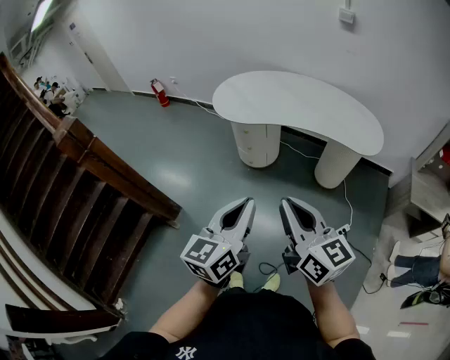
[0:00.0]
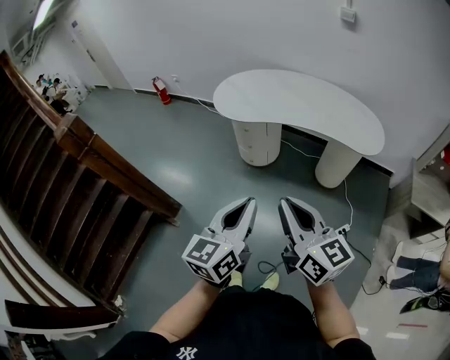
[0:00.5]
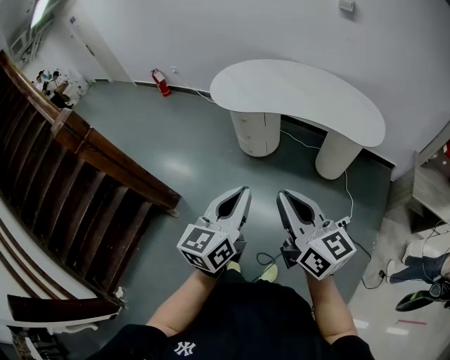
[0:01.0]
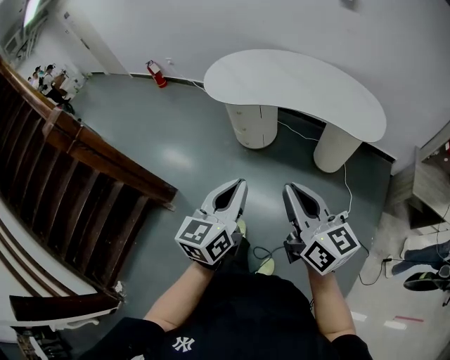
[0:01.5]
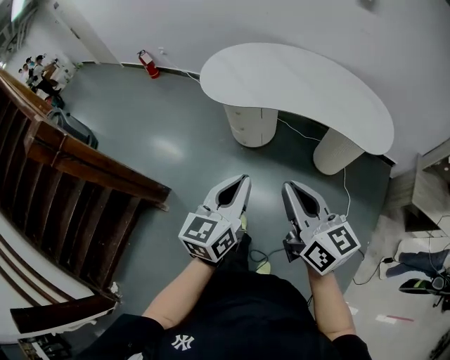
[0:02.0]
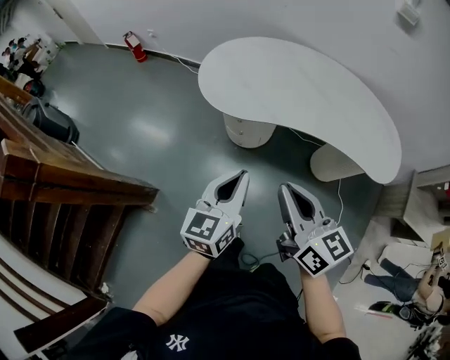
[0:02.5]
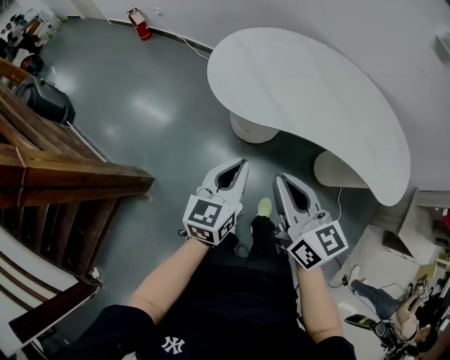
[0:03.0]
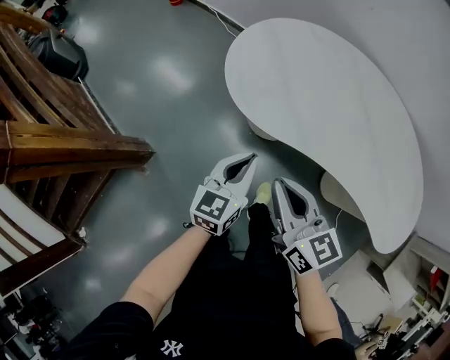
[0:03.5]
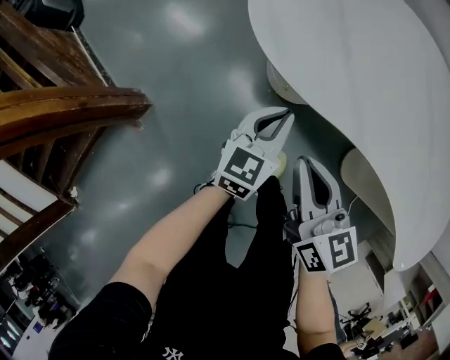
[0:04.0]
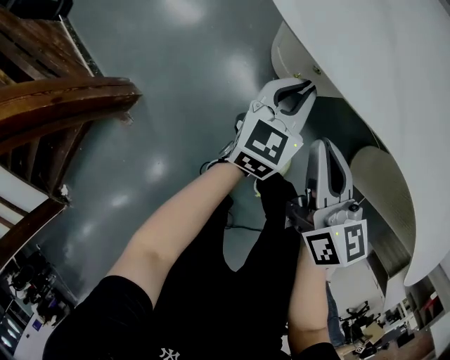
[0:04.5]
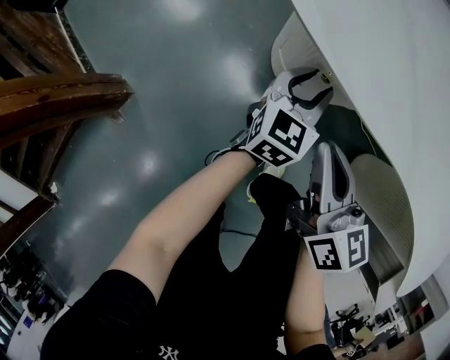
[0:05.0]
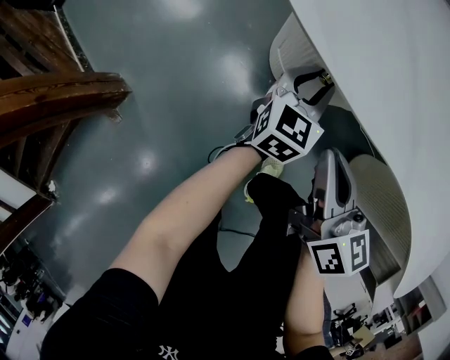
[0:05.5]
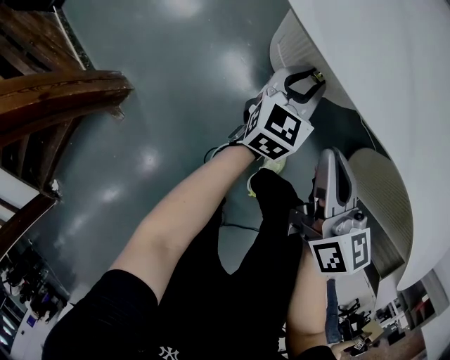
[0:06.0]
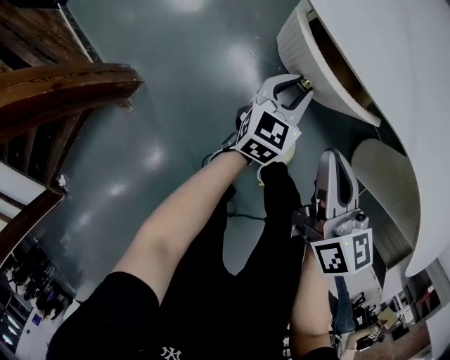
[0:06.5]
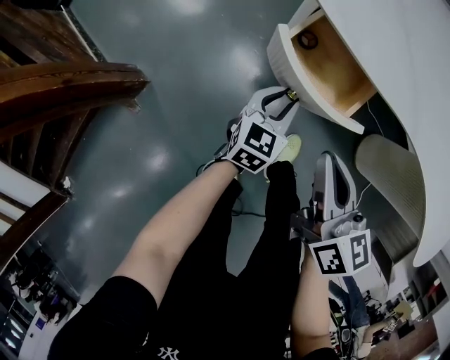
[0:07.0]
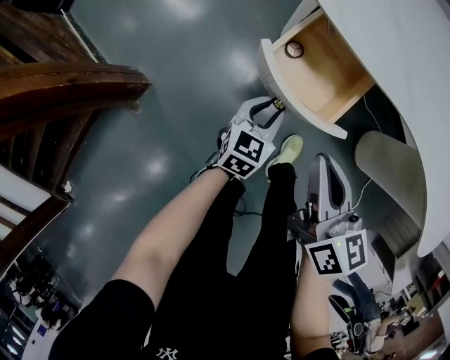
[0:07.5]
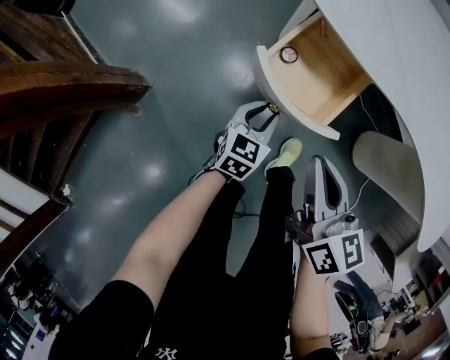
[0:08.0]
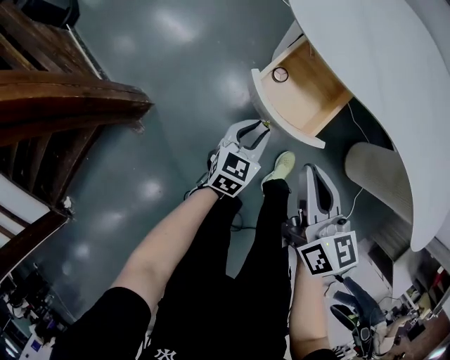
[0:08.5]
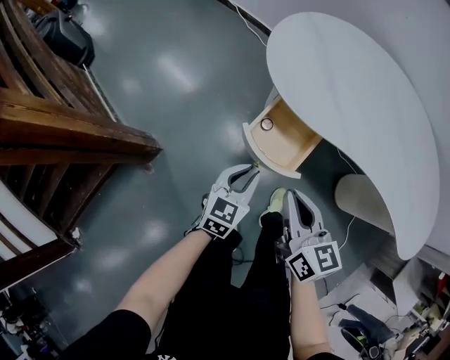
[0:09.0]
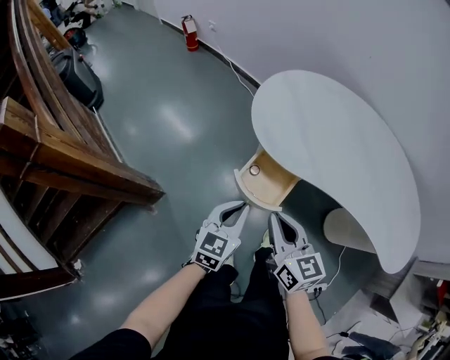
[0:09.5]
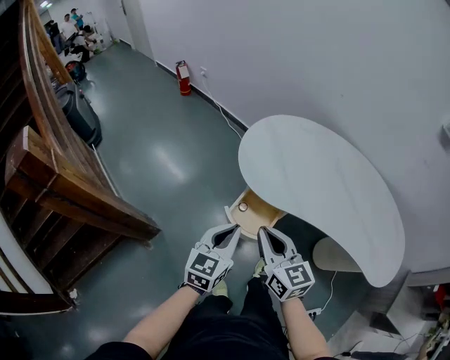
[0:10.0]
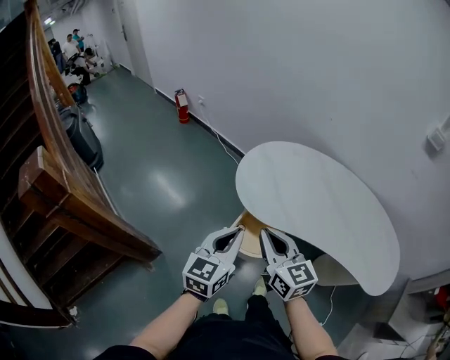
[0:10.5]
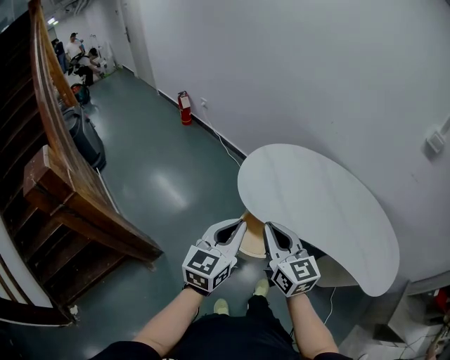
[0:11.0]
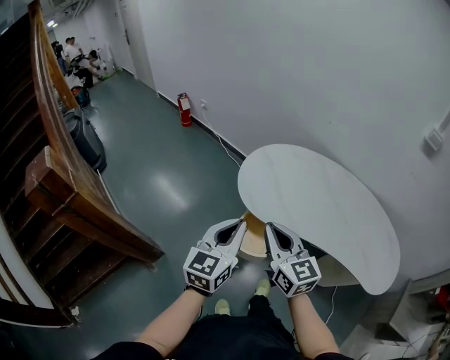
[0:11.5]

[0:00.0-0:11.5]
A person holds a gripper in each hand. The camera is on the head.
0:00.0 to 0:02.0: Both grippers move forward, approximately 15 cm.
0:02.0 to 0:04.0: The two grippers travel together, forward, about 50 cm. Both grippers travel together downward, roughly 35 cm. The right gripper swivels about 20 degrees.
0:04.0 to 0:06.0: The left gripper heads downward and forward, covering about 20 cm, and opens. The right gripper moves downward, approximately 15 cm.
0:06.0 to 0:07.5: The left gripper is displaced backward and to the left by roughly 20 cm. The right gripper travels backward, upward and to the left by about 15 cm.
0:07.5 to 0:09.5: The left gripper goes about 35 cm upward, and closes its fingers, while the right gripper shifts approximately 20 cm upward.
0:09.5 to 0:11.5: Both grippers move upward, some 20 cm.

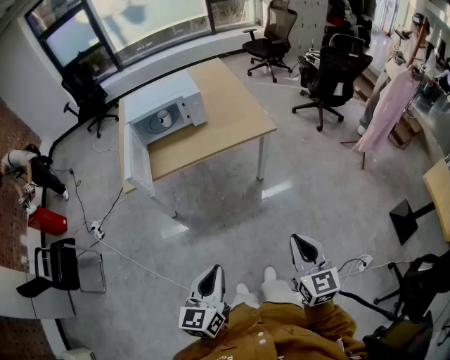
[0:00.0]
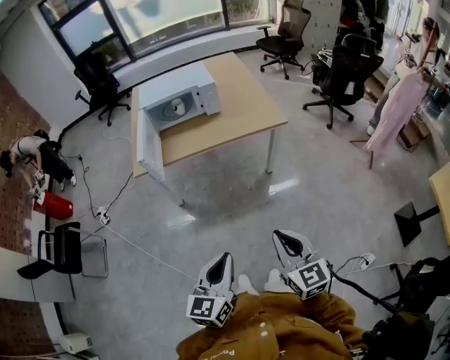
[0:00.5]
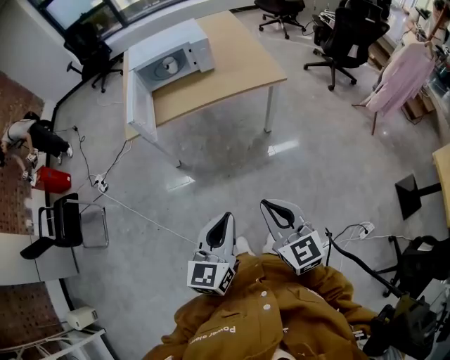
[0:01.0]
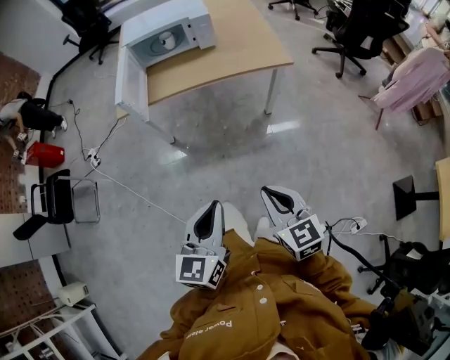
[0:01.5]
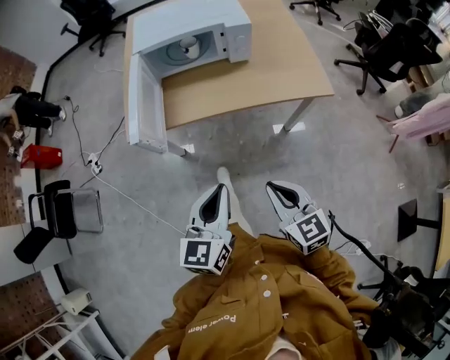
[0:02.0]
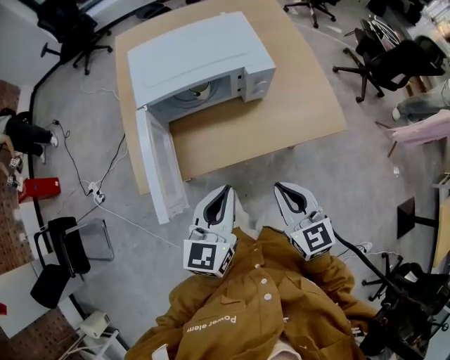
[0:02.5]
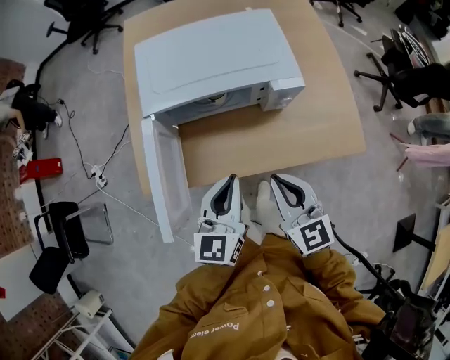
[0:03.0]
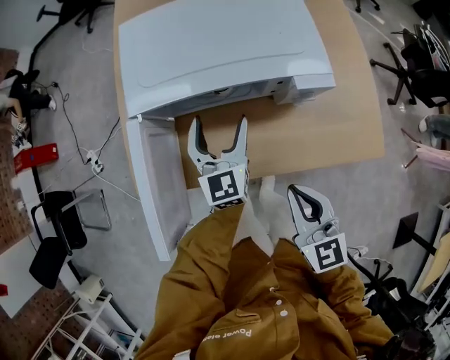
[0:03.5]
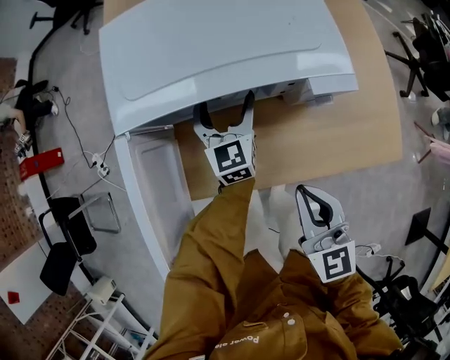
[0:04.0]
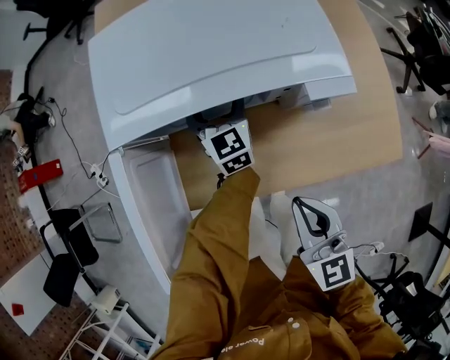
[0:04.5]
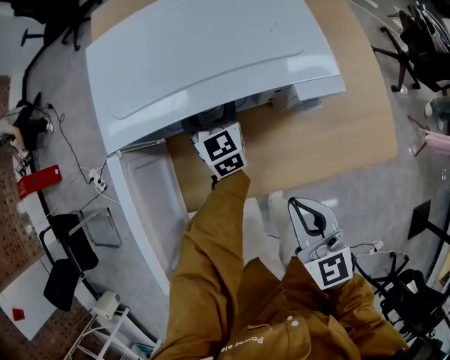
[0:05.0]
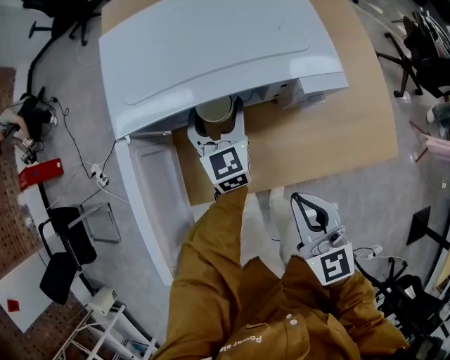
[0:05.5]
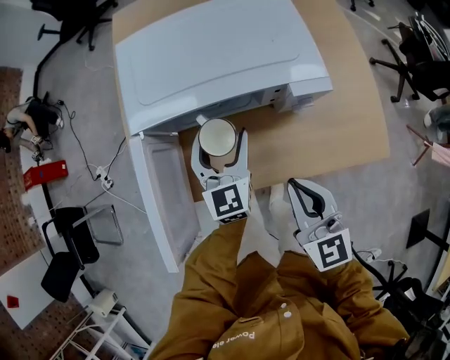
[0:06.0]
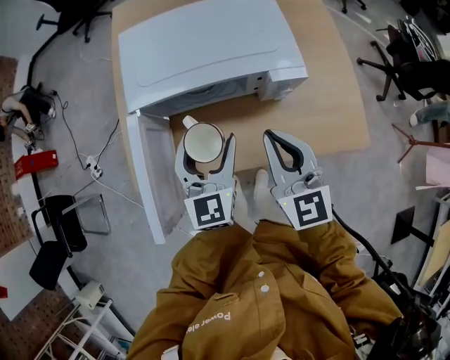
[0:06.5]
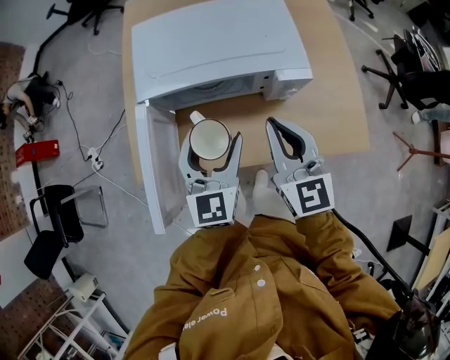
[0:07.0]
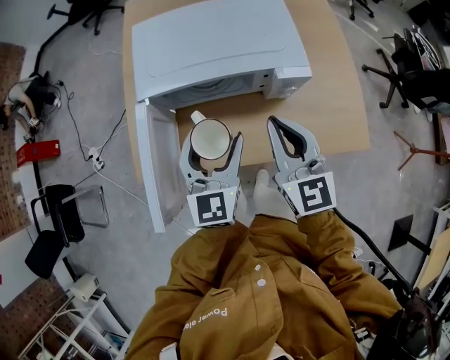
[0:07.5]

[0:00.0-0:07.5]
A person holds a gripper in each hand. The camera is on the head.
0:00.0 to 0:02.0: The right gripper travels forward and to the left by about 30 cm, and rotates approximately 30 degrees. Meanwhile the left gripper travels forward by roughly 30 cm.
0:02.0 to 0:04.0: The left gripper shifts some 60 cm forward, and opens, while the right gripper goes approximately 40 cm forward.
0:04.0 to 0:05.5: The grippers make only small movements.
0:05.5 to 0:07.5: The right gripper is displaced upward and forward by approximately 15 cm. Meanwhile the left gripper is displaced backward and upward by about 20 cm.

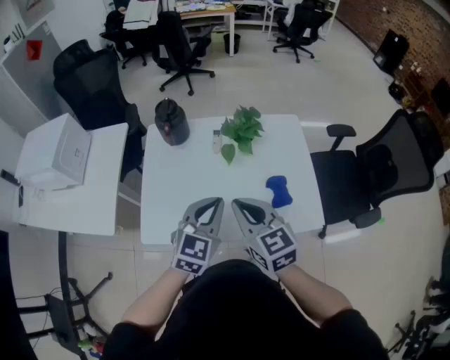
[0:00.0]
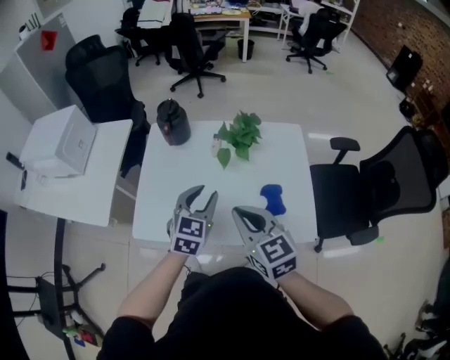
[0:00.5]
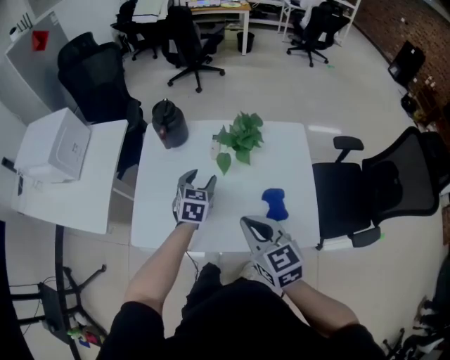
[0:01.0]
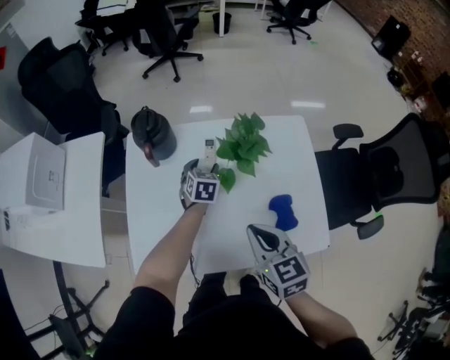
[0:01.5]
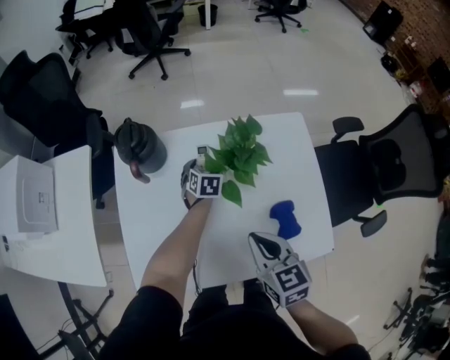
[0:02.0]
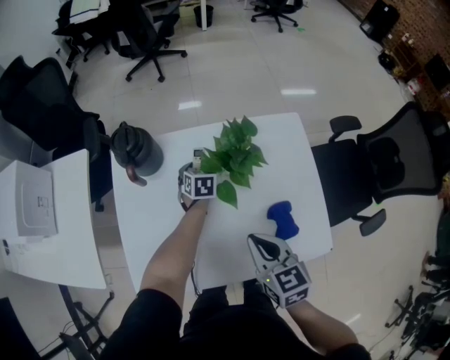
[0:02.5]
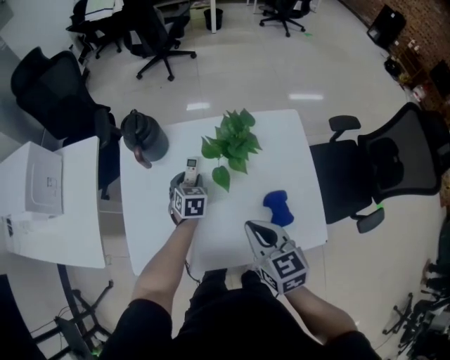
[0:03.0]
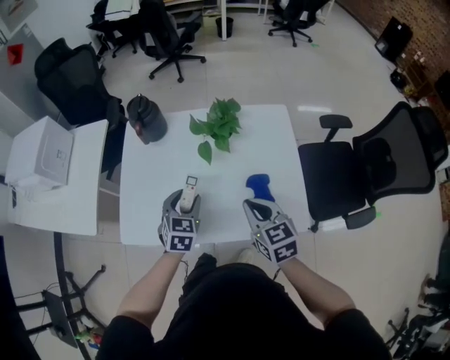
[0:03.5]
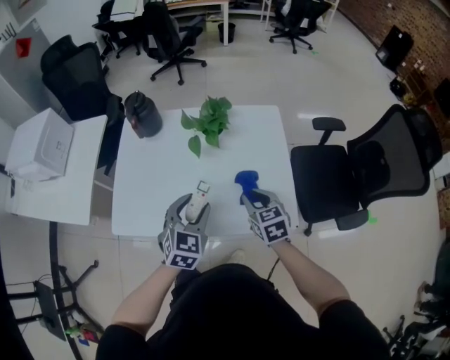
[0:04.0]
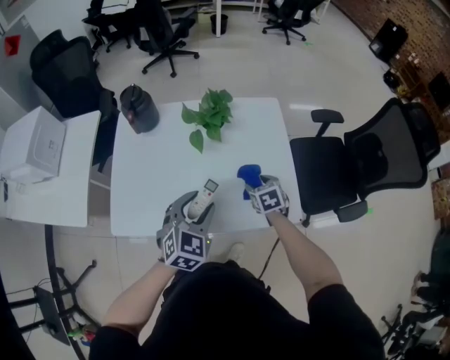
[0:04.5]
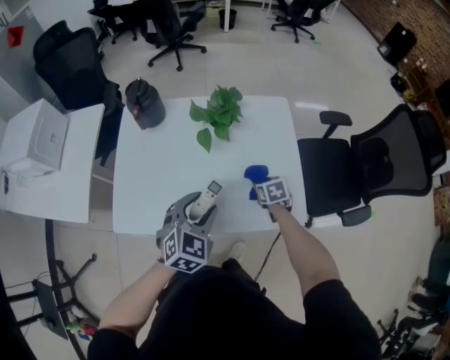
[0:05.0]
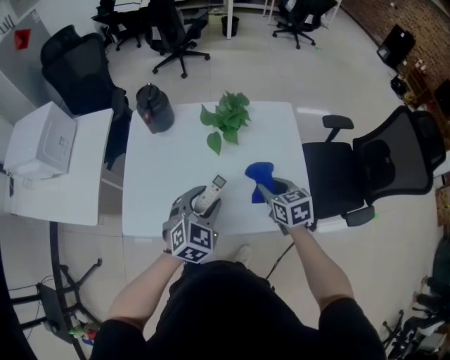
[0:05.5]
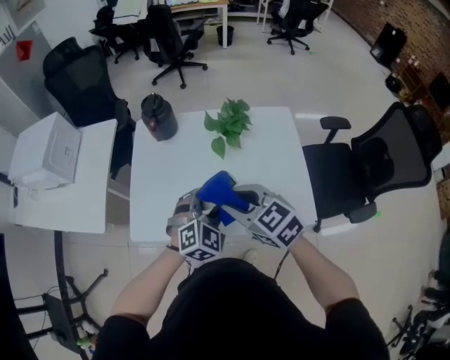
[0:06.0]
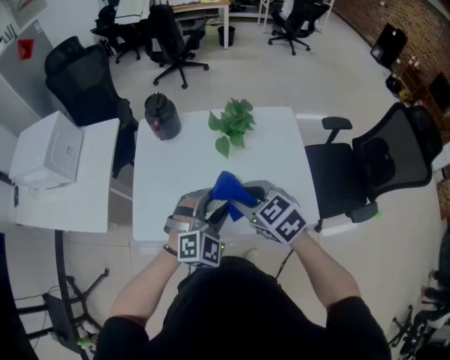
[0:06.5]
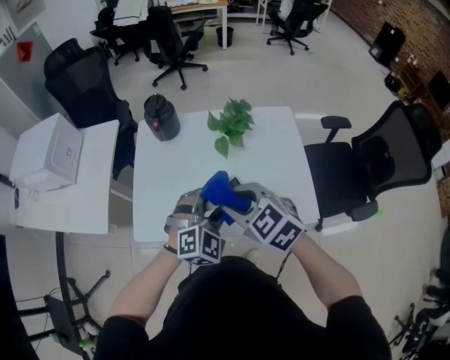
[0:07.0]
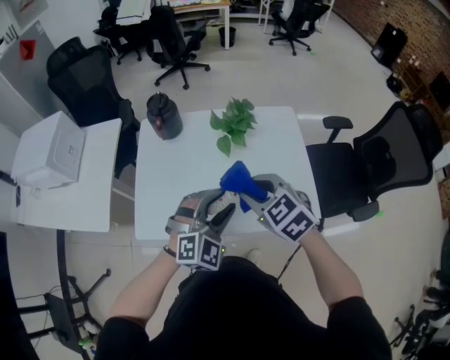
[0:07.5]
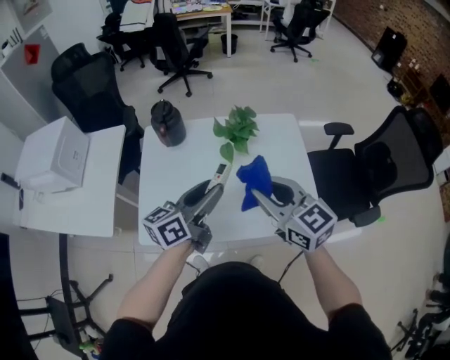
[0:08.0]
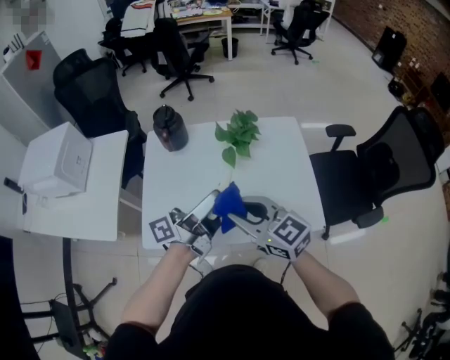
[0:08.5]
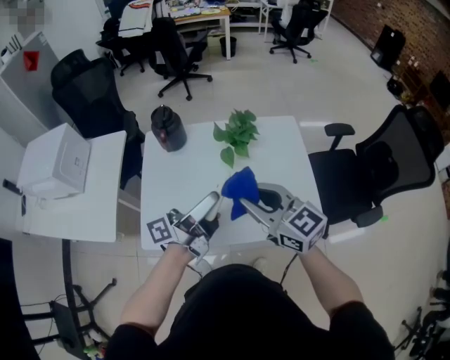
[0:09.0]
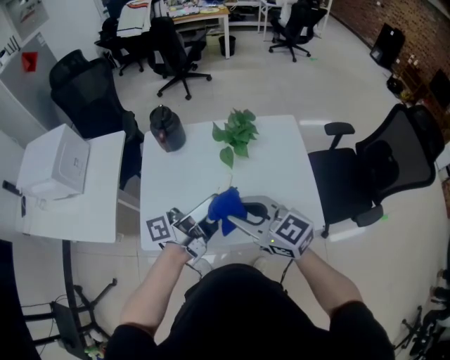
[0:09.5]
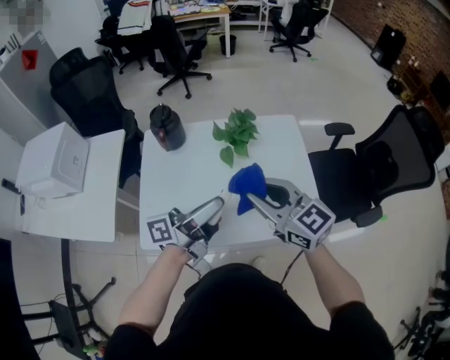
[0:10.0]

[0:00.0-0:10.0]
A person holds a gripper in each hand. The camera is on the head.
0:00.0 to 0:02.0: The left gripper heads forward and downward, covering some 40 cm, points its fingers about 30 degrees further downward, and opens its fingers; the right gripper moves downward, forward and to the right, approximately 15 cm, and swivels roughly 20 degrees.
0:02.0 to 0:04.0: The left gripper goes about 40 cm backward and upward, and rotates some 30 degrees, while the right gripper heads to the right and backward, covering about 15 cm.
0:04.0 to 0:06.0: The right gripper moves to the left and upward, some 20 cm, rotates some 30 degrees, and opens, then closes again, while the left gripper turns by approximately 30 degrees.
0:06.0 to 0:08.0: The left gripper goes roughly 10 cm upward, and twists roughly 70 degrees counterclockwise, seen from behind, while the right gripper heads upward and to the right, covering about 10 cm, and changes its angle by approximately 20 degrees.
0:08.0 to 0:10.0: The left gripper changes its angle by approximately 30 degrees.
